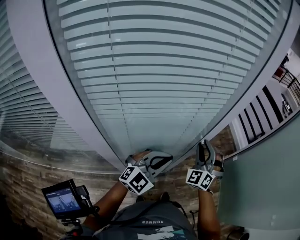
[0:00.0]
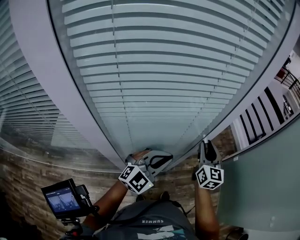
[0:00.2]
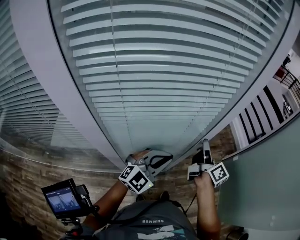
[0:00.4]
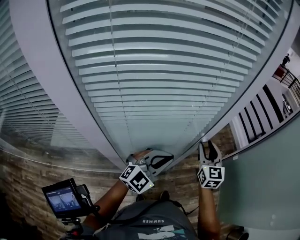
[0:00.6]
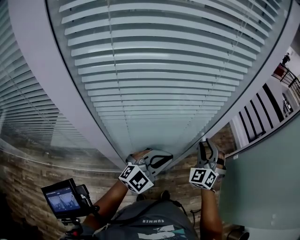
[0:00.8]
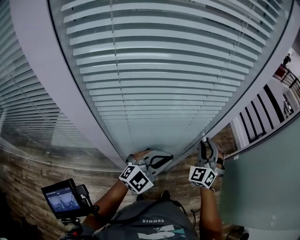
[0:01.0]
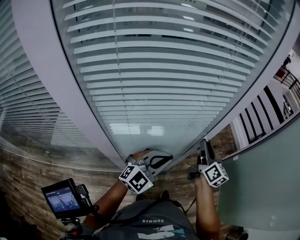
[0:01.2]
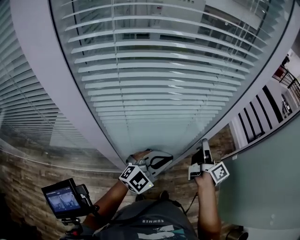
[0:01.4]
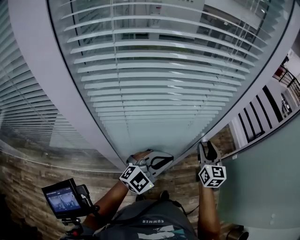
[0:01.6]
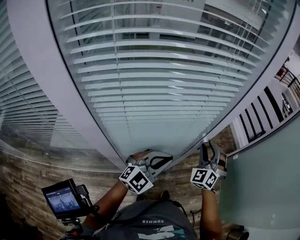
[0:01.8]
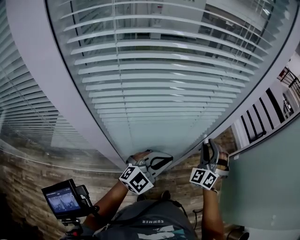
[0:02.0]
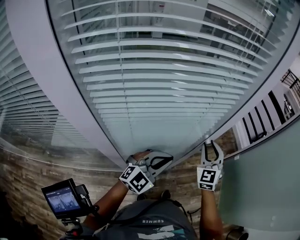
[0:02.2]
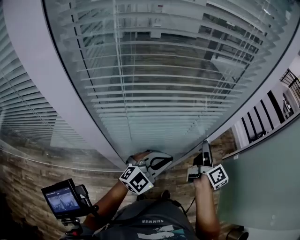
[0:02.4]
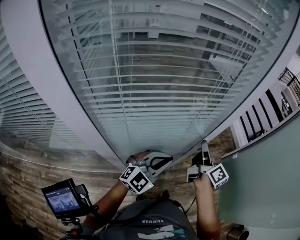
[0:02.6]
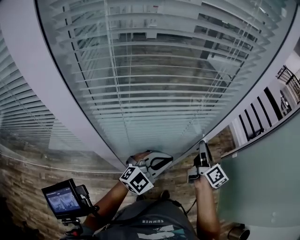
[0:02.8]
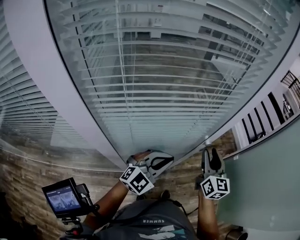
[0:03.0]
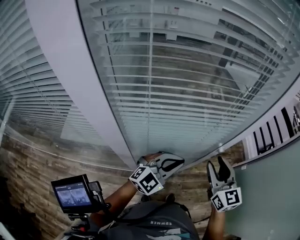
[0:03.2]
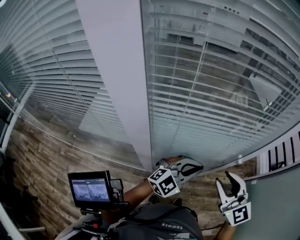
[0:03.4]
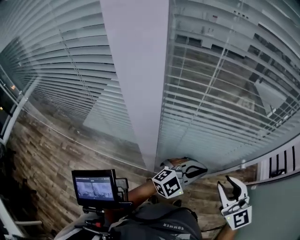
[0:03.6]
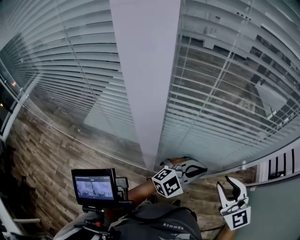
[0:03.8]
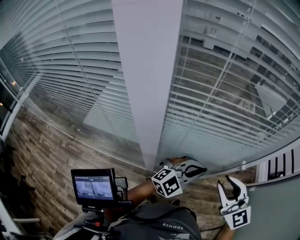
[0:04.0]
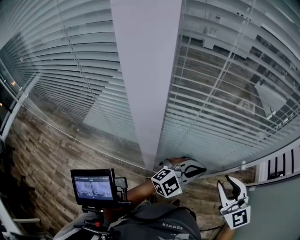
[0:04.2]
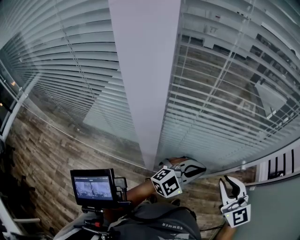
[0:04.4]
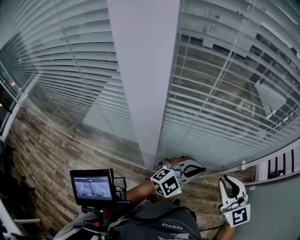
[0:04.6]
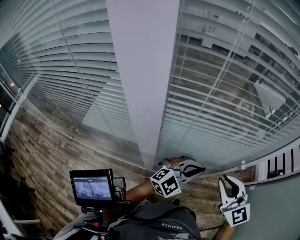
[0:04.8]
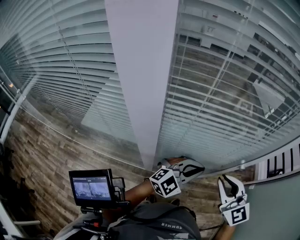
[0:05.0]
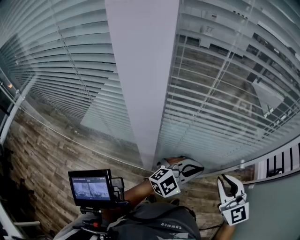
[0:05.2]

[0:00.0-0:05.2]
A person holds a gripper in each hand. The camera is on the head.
0:01.8 to 0:03.4: The right gripper ends up approximately 15 cm from where it was, and changes its angle by roughly 60 degrees.
0:03.4 to 0:05.2: The right gripper closes up.

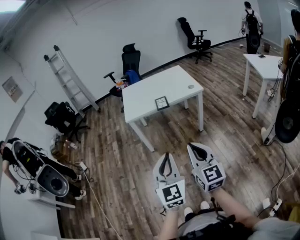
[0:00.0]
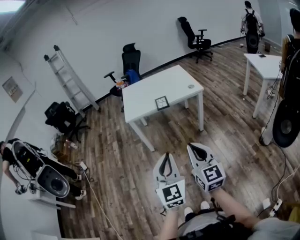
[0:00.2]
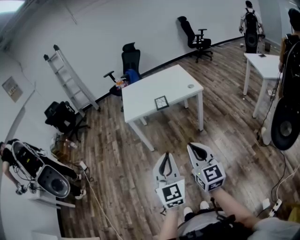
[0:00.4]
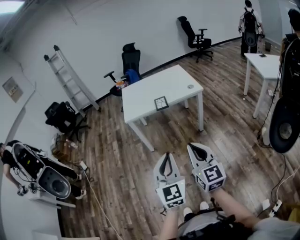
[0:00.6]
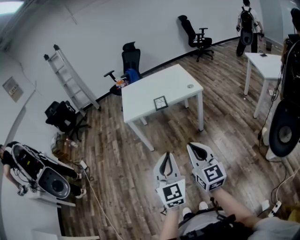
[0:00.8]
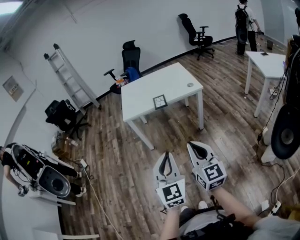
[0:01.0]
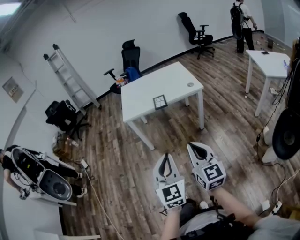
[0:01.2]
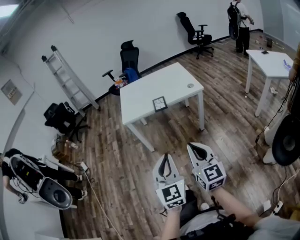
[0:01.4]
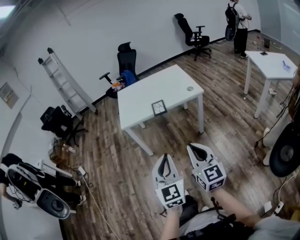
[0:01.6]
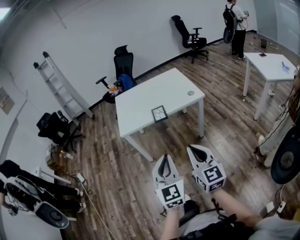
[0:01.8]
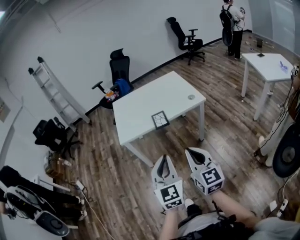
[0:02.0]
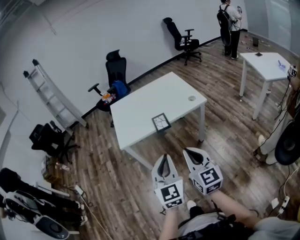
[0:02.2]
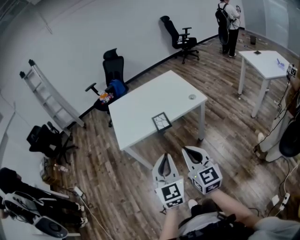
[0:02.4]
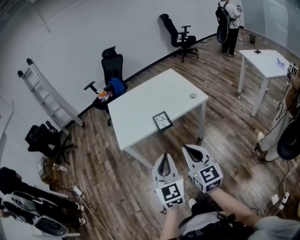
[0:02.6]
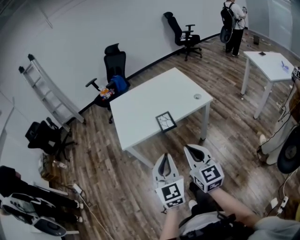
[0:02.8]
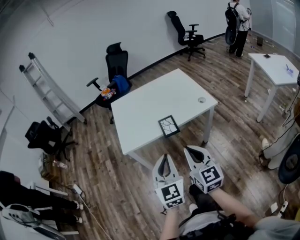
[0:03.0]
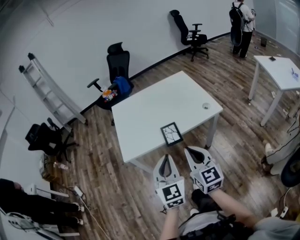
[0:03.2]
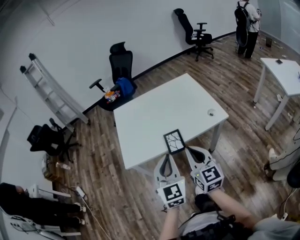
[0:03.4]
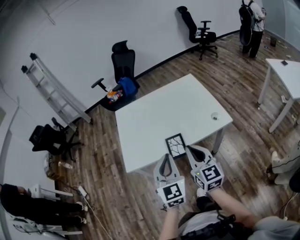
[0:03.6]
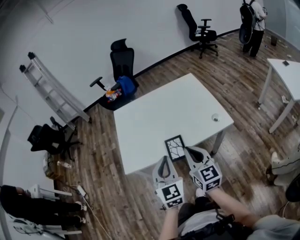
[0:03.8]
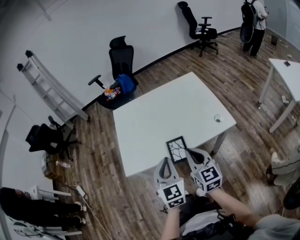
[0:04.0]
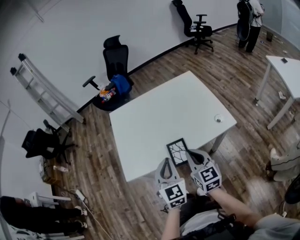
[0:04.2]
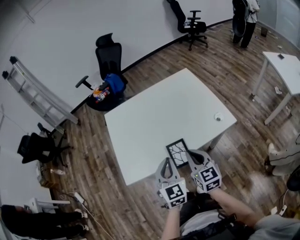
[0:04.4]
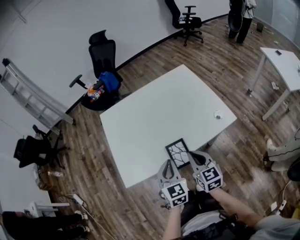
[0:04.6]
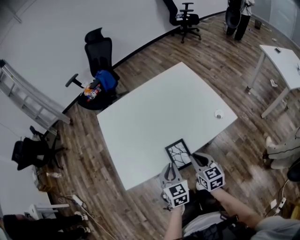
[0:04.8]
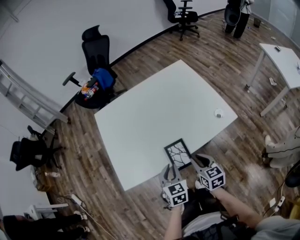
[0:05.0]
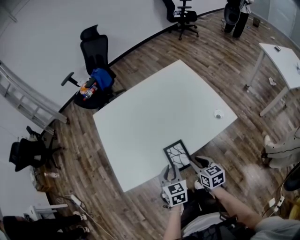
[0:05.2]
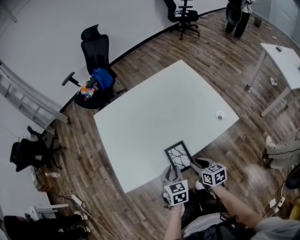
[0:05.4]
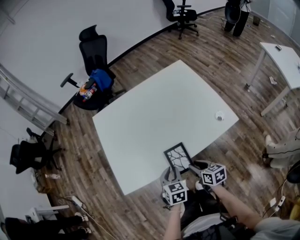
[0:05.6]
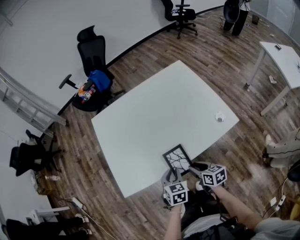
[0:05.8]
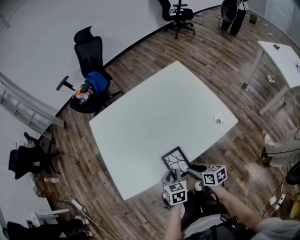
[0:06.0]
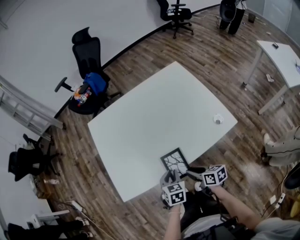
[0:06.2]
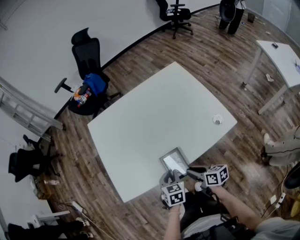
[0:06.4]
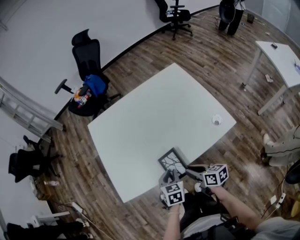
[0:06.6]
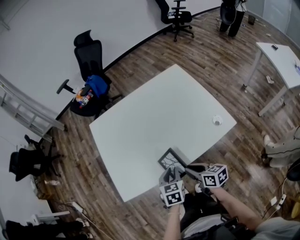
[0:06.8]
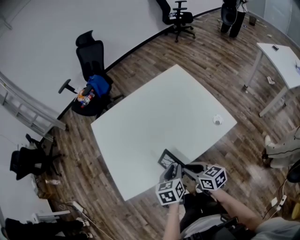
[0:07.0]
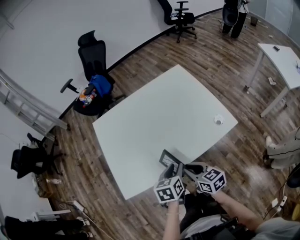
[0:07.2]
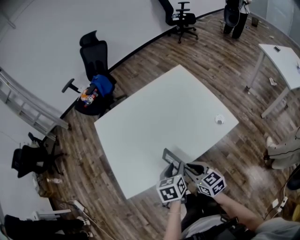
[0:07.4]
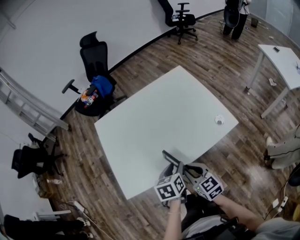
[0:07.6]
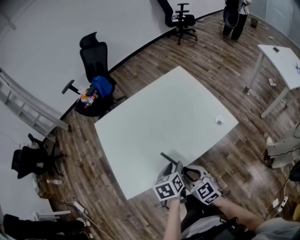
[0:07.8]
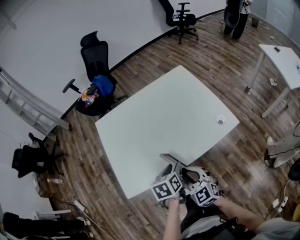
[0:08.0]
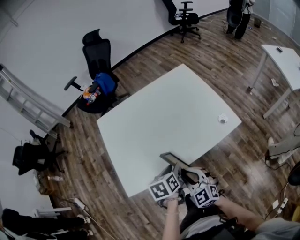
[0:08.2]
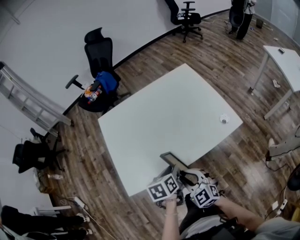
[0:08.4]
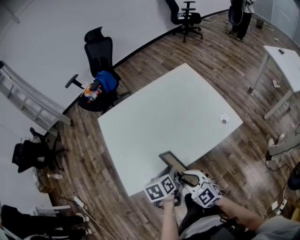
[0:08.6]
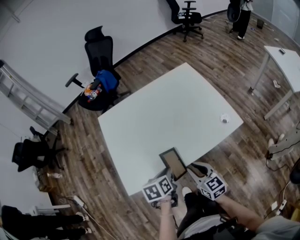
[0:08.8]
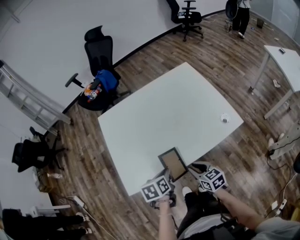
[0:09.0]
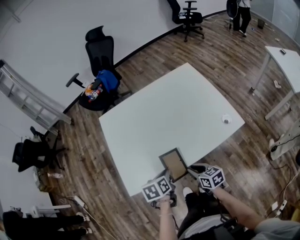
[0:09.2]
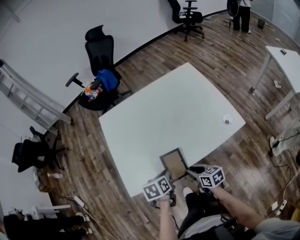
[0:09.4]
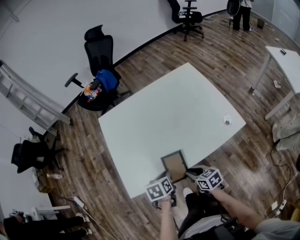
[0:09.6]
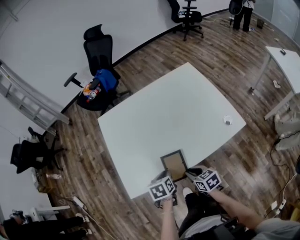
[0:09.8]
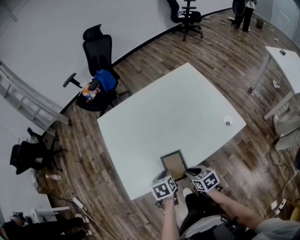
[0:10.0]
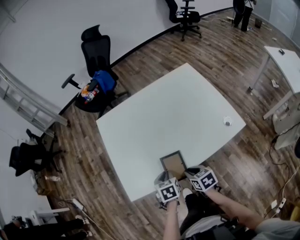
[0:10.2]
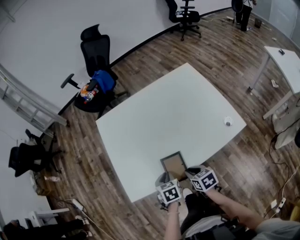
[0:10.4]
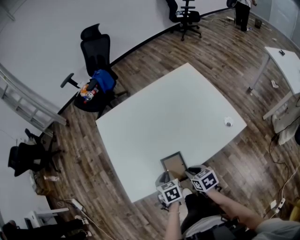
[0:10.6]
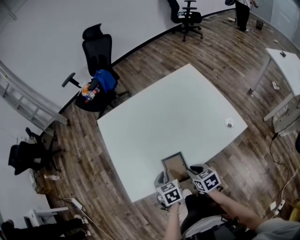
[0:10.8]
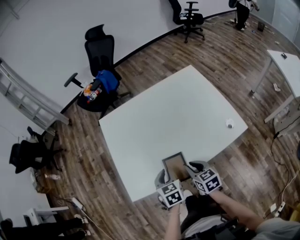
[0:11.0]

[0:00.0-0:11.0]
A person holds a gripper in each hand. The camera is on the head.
0:00.0 to 0:01.6: The two grippers go some 10 cm forward.
0:01.6 to 0:03.2: The grippers both shift forward by some 35 cm.
0:03.2 to 0:04.8: The two grippers go approximately 30 cm forward and downward. The left gripper turns by some 30 degrees, while the right gripper swivels roughly 30 degrees.
0:04.8 to 0:06.2: The grippers both shift downward by some 10 cm. The right gripper turns by about 40 degrees, and opens.
0:06.2 to 0:07.8: The grippers both shift upward by roughly 10 cm. The left gripper swivels roughly 30 degrees, and opens. The right gripper rolls counterclockwise, seen from behind, by roughly 50 degrees.
0:07.8 to 0:09.4: The left gripper travels to the left and downward by about 10 cm. Meanwhile the right gripper moves downward, some 10 cm, and turns by roughly 40 degrees.
0:09.4 to 0:11.0: The right gripper travels forward by some 5 cm. Meanwhile the left gripper turns by approximately 30 degrees.

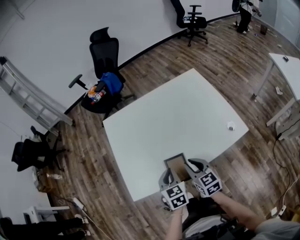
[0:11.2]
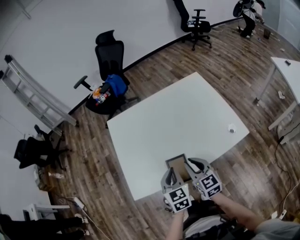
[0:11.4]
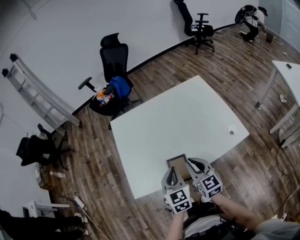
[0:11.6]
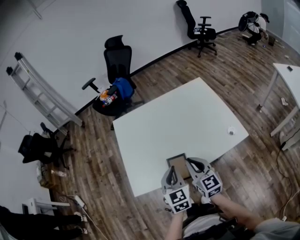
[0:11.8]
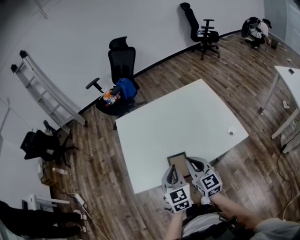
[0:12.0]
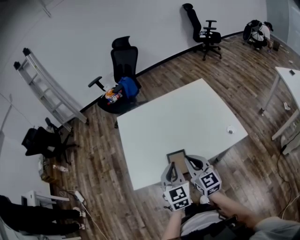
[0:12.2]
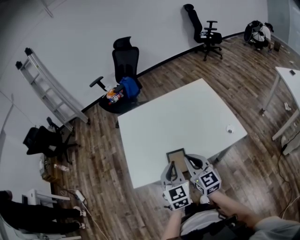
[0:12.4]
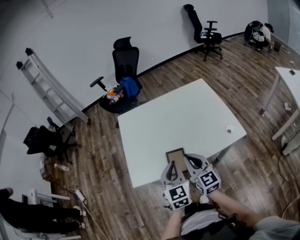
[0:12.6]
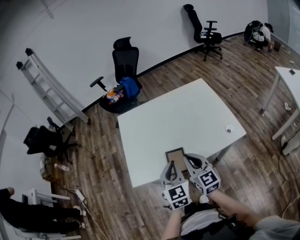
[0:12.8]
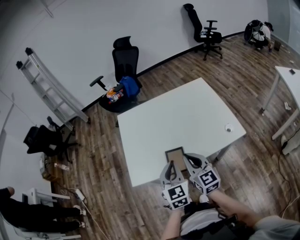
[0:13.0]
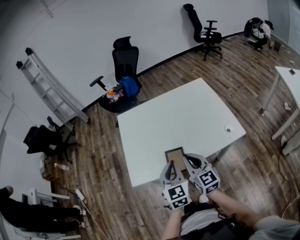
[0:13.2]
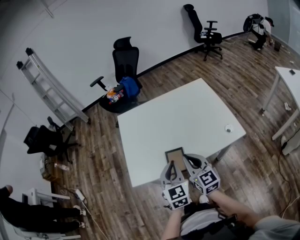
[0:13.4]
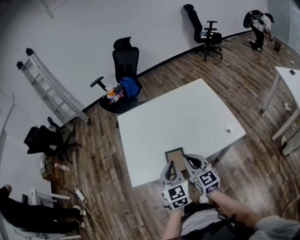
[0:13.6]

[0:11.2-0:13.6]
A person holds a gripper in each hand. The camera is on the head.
0:11.2 to 0:12.4: Both grippers move upward and backward, about 15 cm. The right gripper rotates roughly 20 degrees. The left gripper turns by approximately 20 degrees.
0:12.4 to 0:13.6: Both grippers stay put.

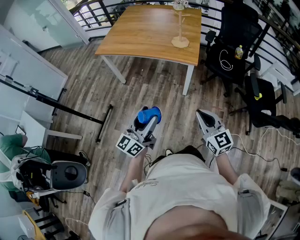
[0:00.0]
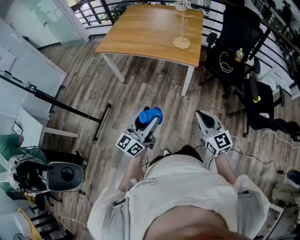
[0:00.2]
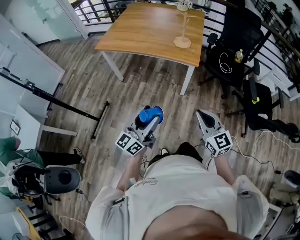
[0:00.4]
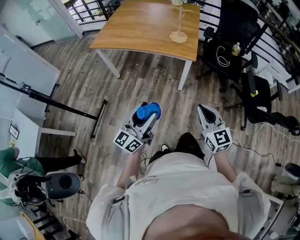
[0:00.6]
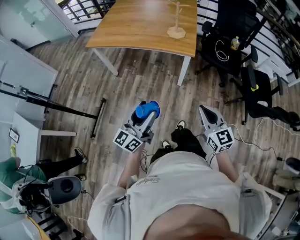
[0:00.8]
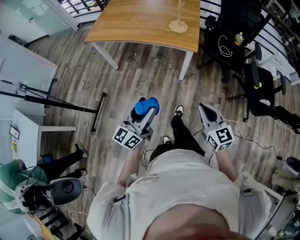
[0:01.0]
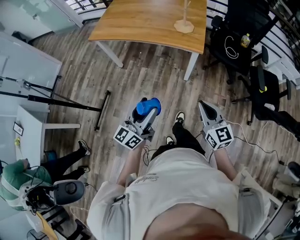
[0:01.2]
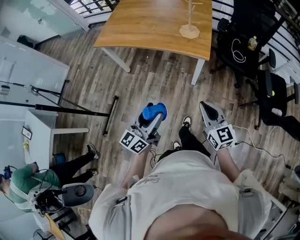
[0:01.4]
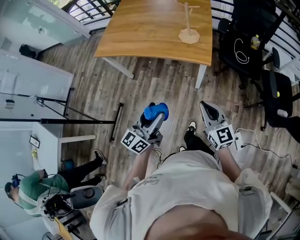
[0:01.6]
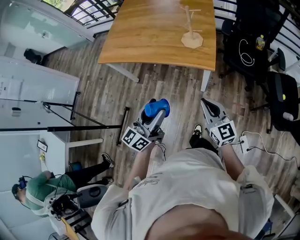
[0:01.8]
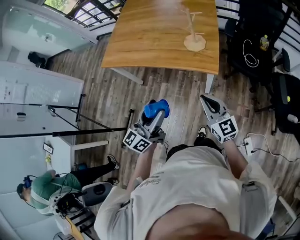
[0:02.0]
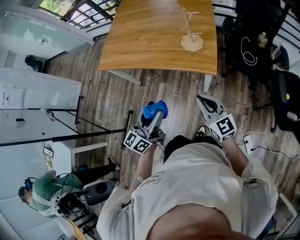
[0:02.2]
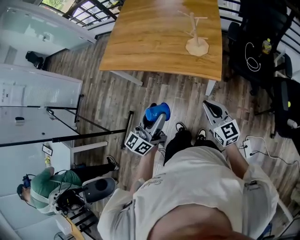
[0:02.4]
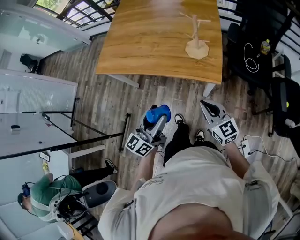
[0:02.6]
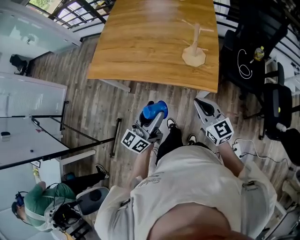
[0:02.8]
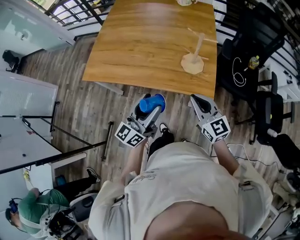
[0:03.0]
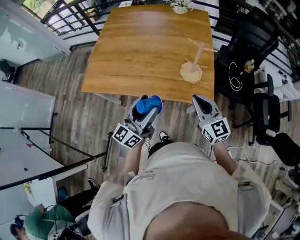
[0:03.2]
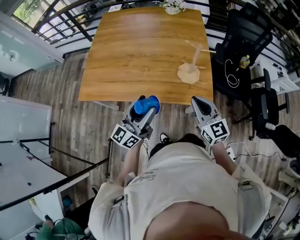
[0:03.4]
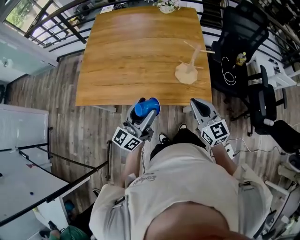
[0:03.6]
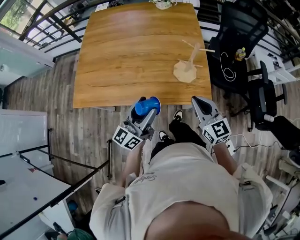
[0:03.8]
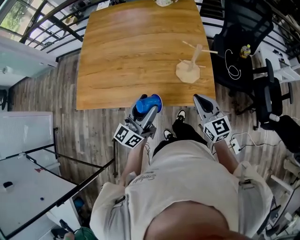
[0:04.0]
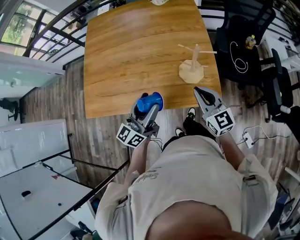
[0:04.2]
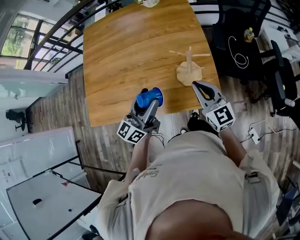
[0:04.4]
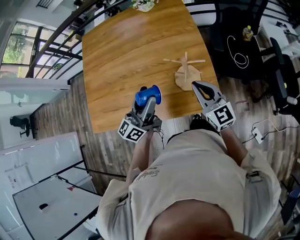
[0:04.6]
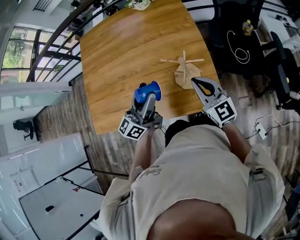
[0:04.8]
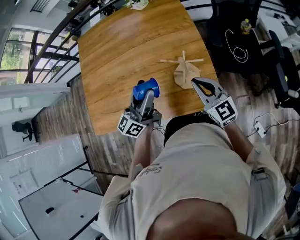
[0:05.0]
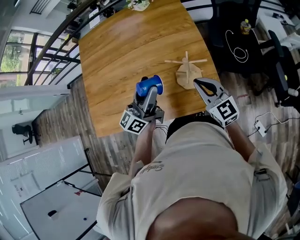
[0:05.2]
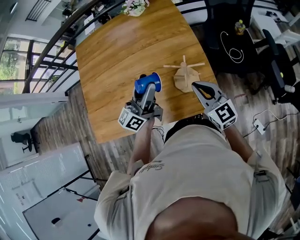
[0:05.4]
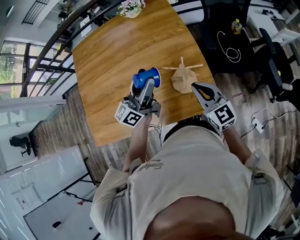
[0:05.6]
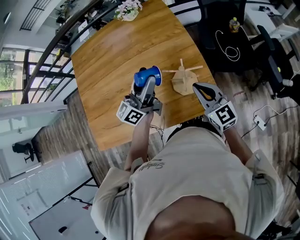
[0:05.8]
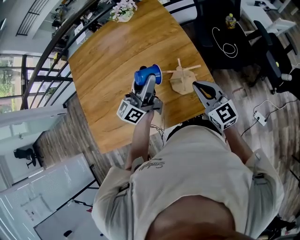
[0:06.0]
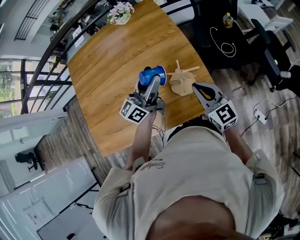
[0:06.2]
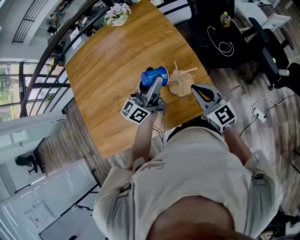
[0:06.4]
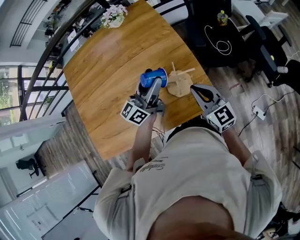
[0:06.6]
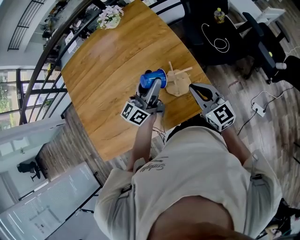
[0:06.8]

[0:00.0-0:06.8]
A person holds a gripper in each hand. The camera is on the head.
0:00.0 to 0:01.4: The grippers both shift forward by some 10 cm.
0:01.4 to 0:02.8: The two grippers go about 30 cm forward.
0:02.8 to 0:04.0: The two grippers go some 20 cm forward.
0:04.0 to 0:05.4: The left gripper goes roughly 20 cm forward. Meanwhile the right gripper moves forward, roughly 10 cm.
0:05.4 to 0:06.8: The left gripper shifts roughly 10 cm to the right and forward.
